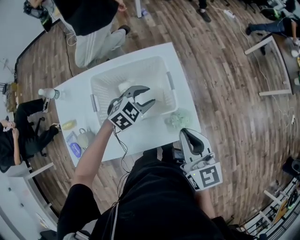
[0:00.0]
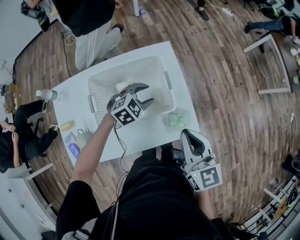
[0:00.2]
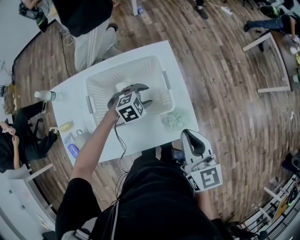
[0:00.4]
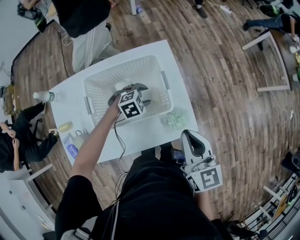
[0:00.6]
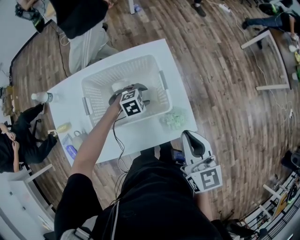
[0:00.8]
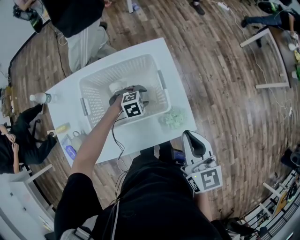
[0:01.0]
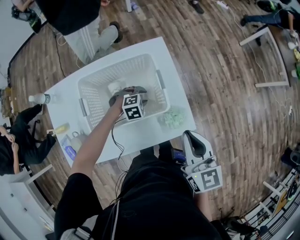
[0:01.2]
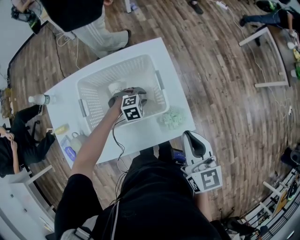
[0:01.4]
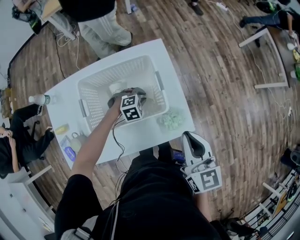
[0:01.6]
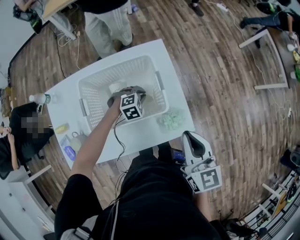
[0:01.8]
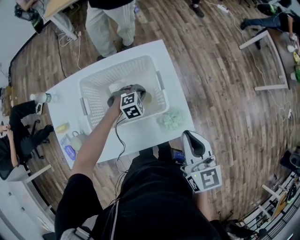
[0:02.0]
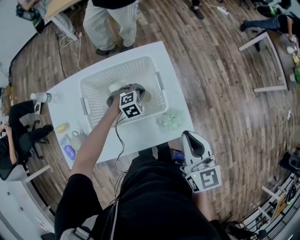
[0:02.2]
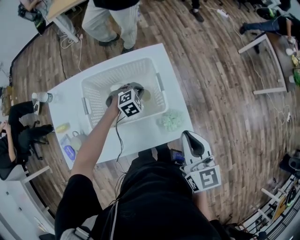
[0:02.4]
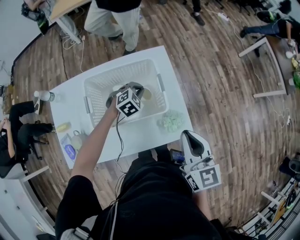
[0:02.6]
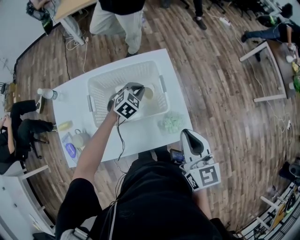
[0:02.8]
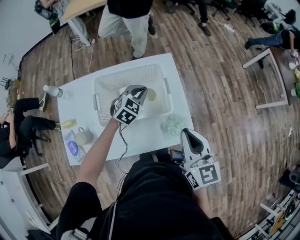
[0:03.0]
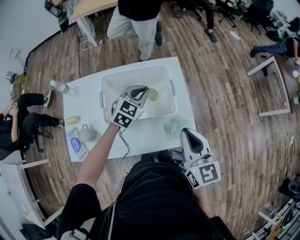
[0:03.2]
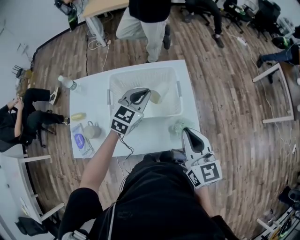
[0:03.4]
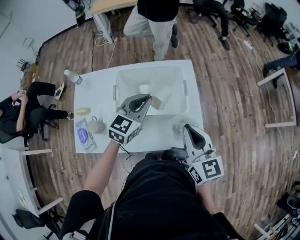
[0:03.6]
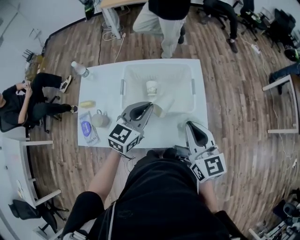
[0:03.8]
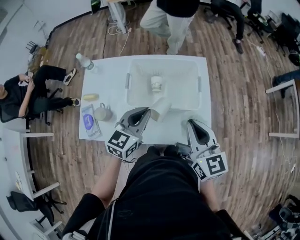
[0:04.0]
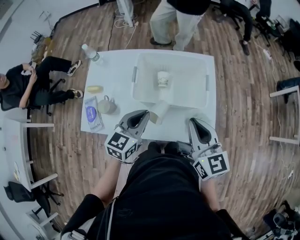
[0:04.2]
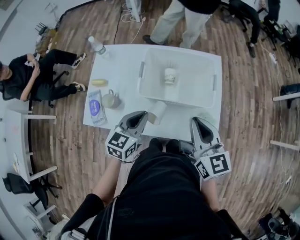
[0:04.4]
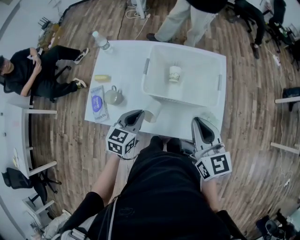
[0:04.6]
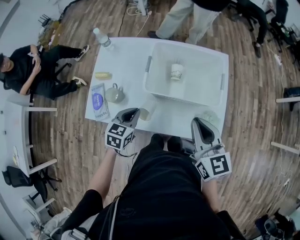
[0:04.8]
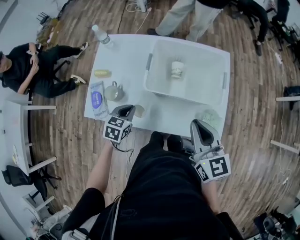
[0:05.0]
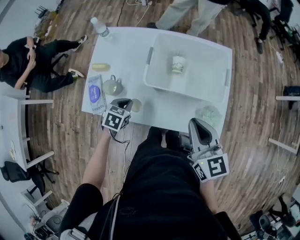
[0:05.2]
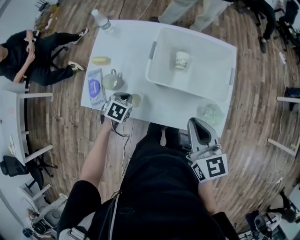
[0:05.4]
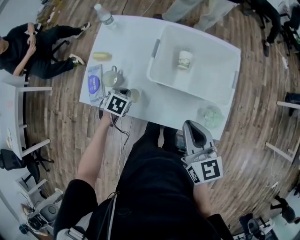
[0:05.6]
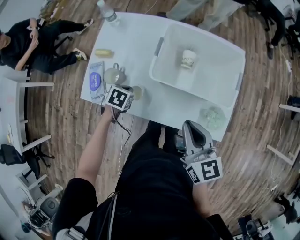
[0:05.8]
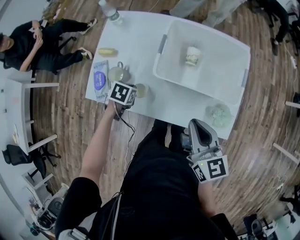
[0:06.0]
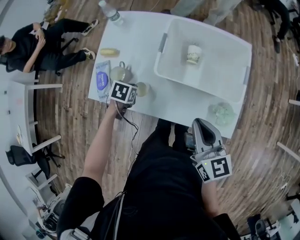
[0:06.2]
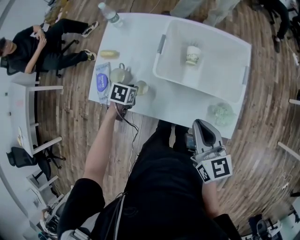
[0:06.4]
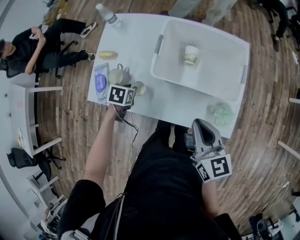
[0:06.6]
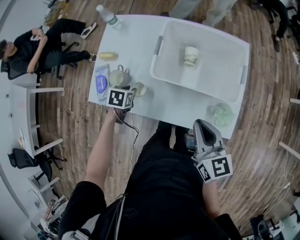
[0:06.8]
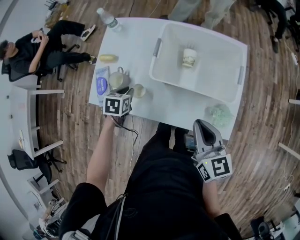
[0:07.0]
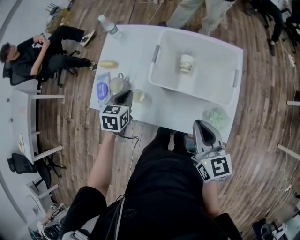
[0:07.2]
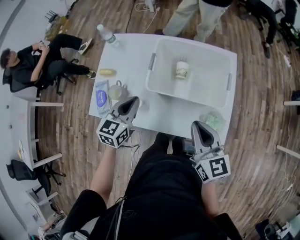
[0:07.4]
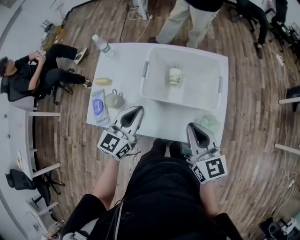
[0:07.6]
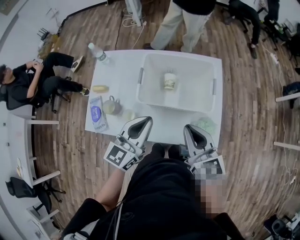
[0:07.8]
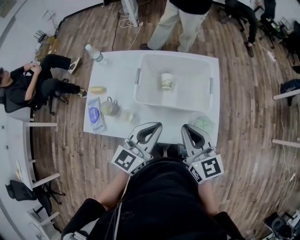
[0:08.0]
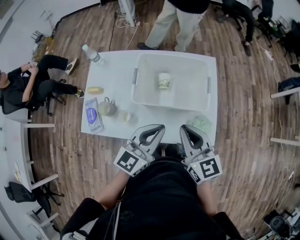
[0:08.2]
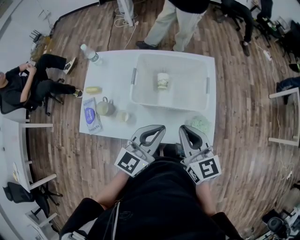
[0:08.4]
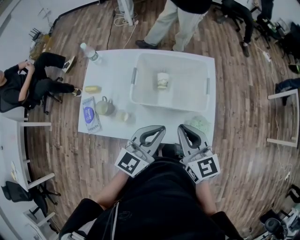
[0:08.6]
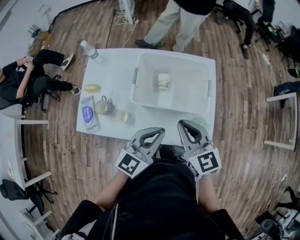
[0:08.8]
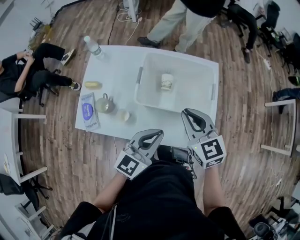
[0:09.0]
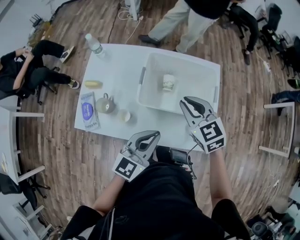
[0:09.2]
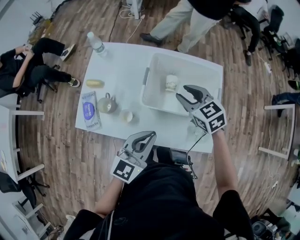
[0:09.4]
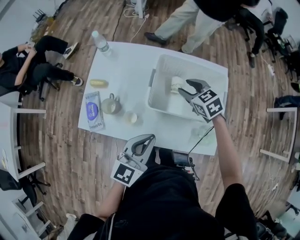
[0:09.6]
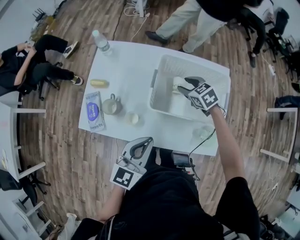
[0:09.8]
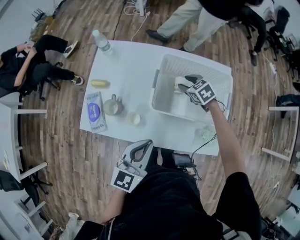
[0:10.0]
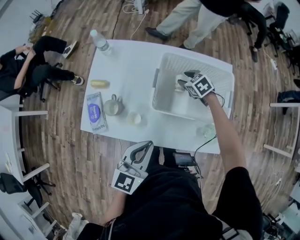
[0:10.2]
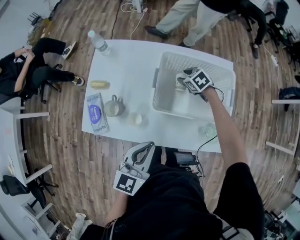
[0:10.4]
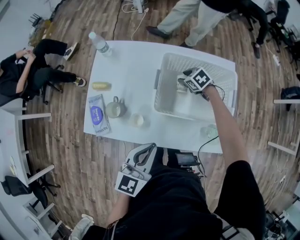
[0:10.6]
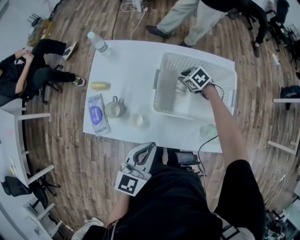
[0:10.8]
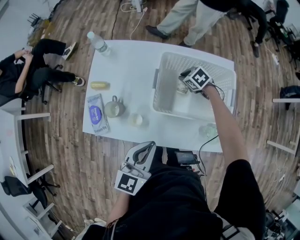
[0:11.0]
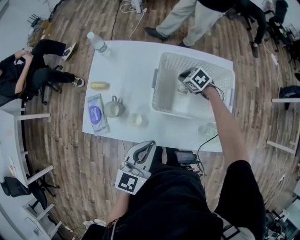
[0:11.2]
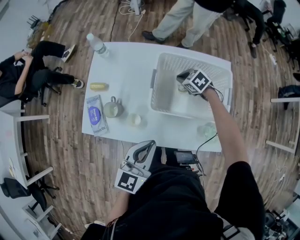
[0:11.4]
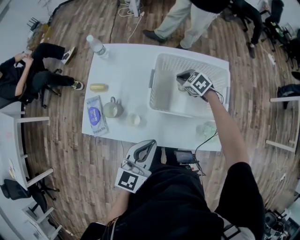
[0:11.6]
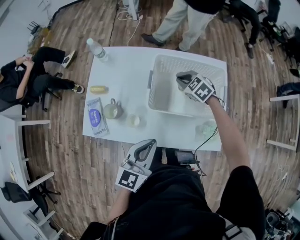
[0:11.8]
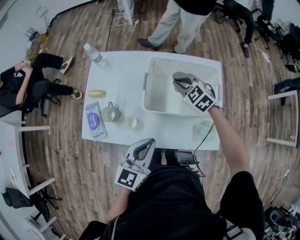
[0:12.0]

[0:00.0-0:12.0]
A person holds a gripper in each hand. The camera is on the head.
0:00.0 to 0:01.6: The left gripper heads downward, covering roughly 15 cm, changes its angle by about 30 degrees, and closes its fingers.
0:01.6 to 0:03.0: The left gripper goes about 15 cm upward, and rotates approximately 40 degrees.
0:03.0 to 0:04.4: The left gripper moves backward and to the left, some 25 cm, and rotates some 40 degrees. The right gripper moves to the left, about 10 cm, and swivels roughly 20 degrees.
0:04.4 to 0:06.0: The left gripper is displaced downward by roughly 20 cm, and tilts its fingers about 50 degrees downward, while the right gripper goes some 10 cm downward.
0:06.0 to 0:07.6: The left gripper travels upward by roughly 25 cm, points its fingers roughly 60 degrees further upward, and opens, then closes again, while the right gripper moves roughly 5 cm.
0:07.6 to 0:09.0: The left gripper goes about 10 cm to the right. The right gripper moves forward, roughly 5 cm.
0:09.0 to 0:10.4: The left gripper goes about 10 cm to the left. The right gripper shifts approximately 35 cm downward and forward, points its fingers some 30 degrees further downward, and opens its fingers.
0:10.4 to 0:12.0: The right gripper shifts about 15 cm upward and backward, rotates roughly 30 degrees, and closes.

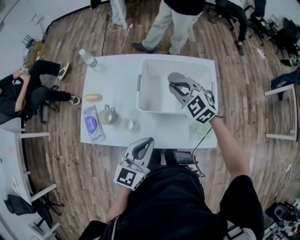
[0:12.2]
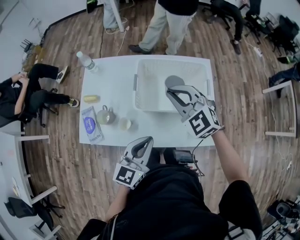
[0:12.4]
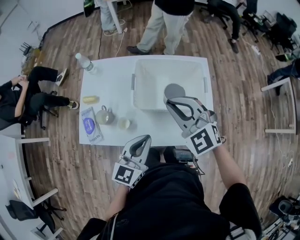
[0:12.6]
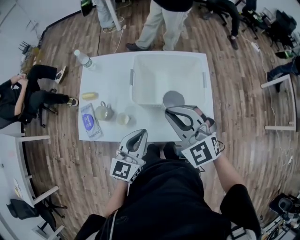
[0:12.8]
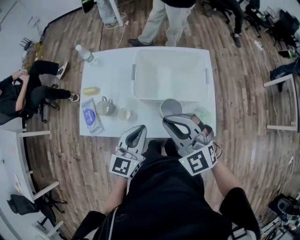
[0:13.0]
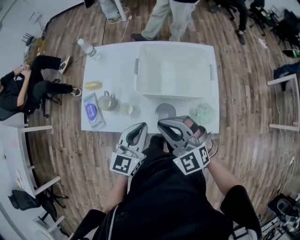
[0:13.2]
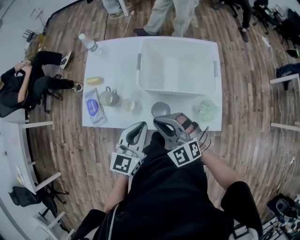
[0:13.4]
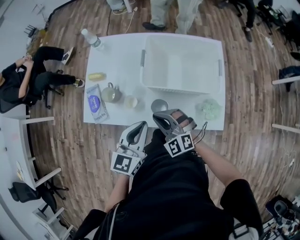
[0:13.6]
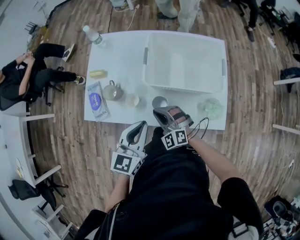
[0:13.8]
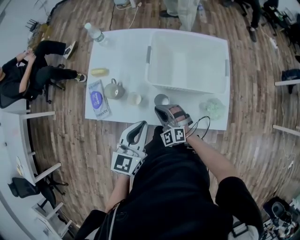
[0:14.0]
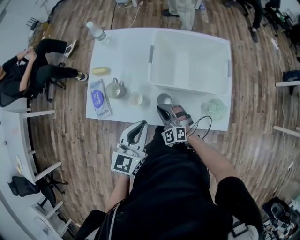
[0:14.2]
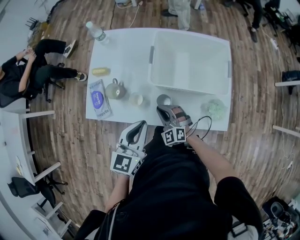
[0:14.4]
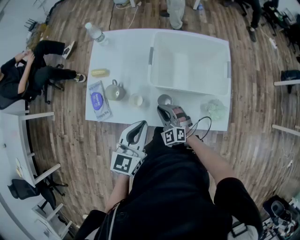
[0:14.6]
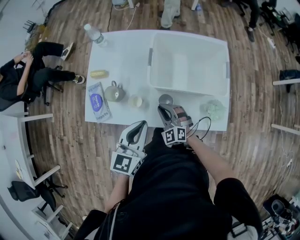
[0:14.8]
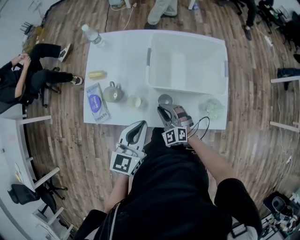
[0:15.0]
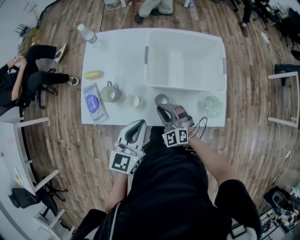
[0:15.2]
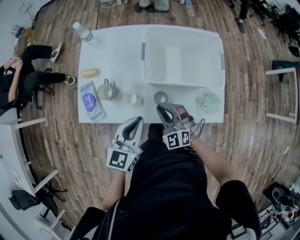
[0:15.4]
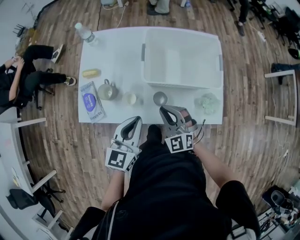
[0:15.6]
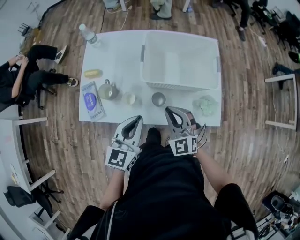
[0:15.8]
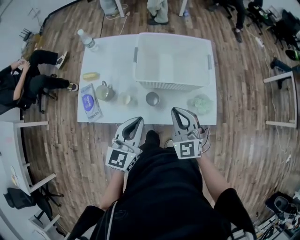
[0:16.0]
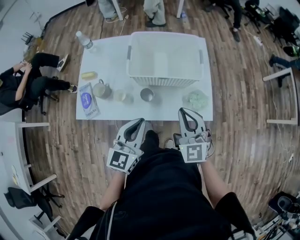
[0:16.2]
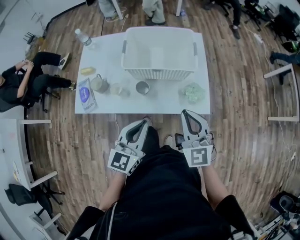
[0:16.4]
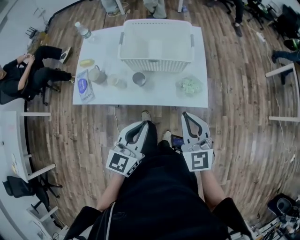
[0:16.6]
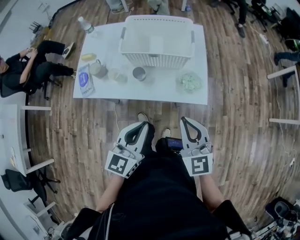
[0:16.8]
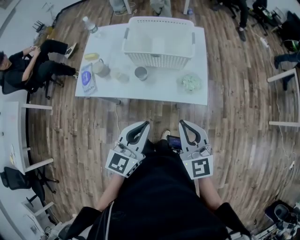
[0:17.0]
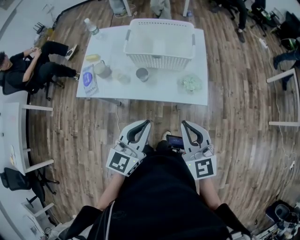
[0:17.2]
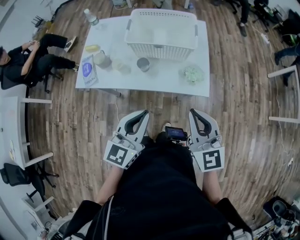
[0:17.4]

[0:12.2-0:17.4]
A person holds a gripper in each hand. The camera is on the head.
0:12.2 to 0:14.0: The left gripper is displaced to the left by some 5 cm; the right gripper goes roughly 25 cm backward, downward and to the left.
0:14.0 to 0:15.6: The right gripper is displaced upward by about 5 cm.
0:15.6 to 0:17.4: The left gripper moves backward, to the right and upward, roughly 25 cm. The right gripper is displaced to the right, backward and upward by some 35 cm, and turns by roughly 30 degrees.

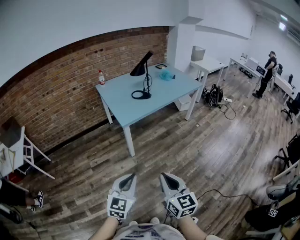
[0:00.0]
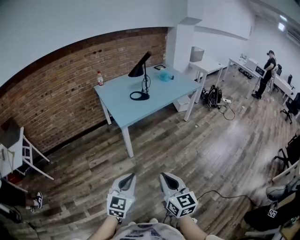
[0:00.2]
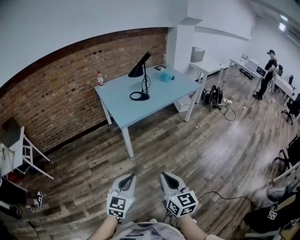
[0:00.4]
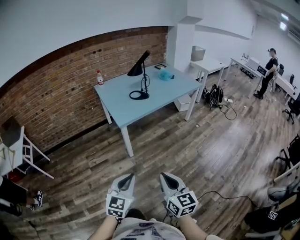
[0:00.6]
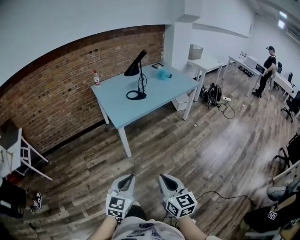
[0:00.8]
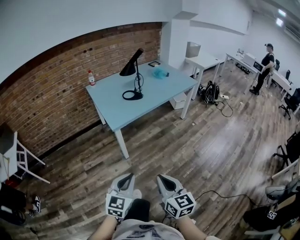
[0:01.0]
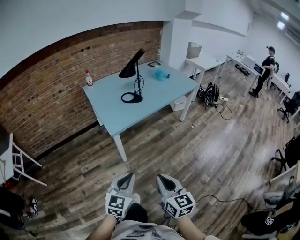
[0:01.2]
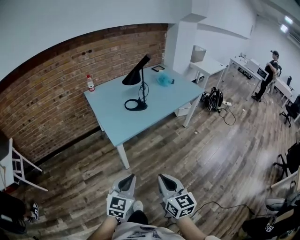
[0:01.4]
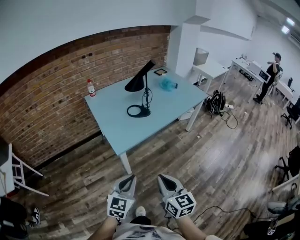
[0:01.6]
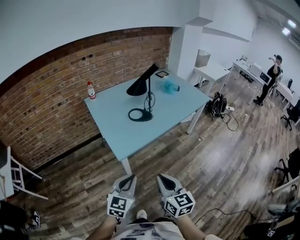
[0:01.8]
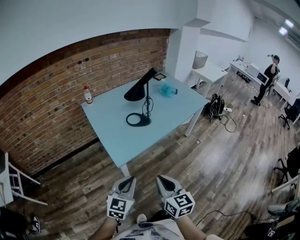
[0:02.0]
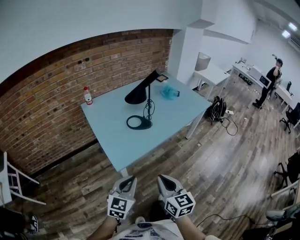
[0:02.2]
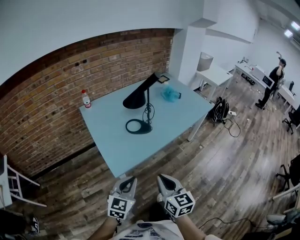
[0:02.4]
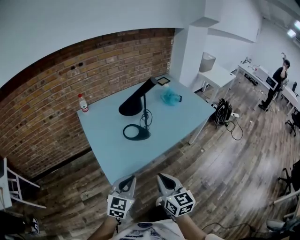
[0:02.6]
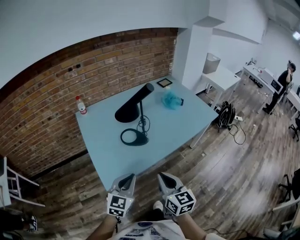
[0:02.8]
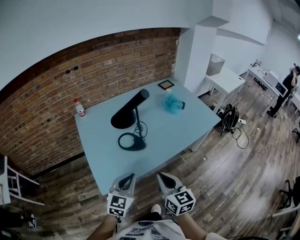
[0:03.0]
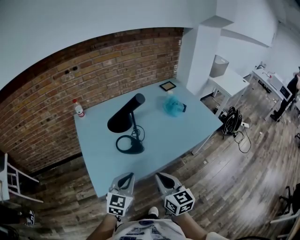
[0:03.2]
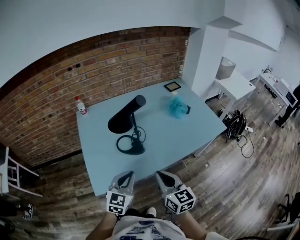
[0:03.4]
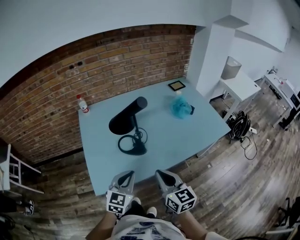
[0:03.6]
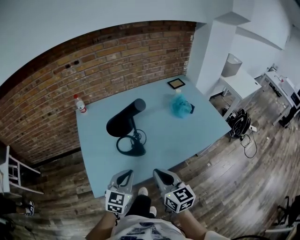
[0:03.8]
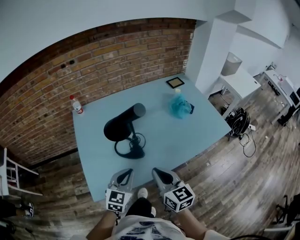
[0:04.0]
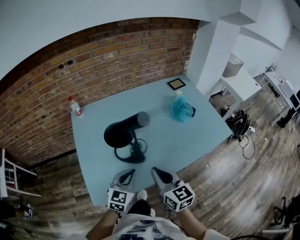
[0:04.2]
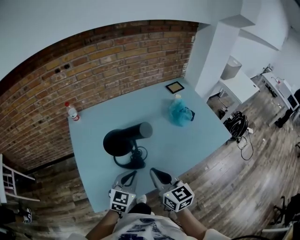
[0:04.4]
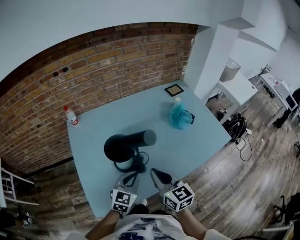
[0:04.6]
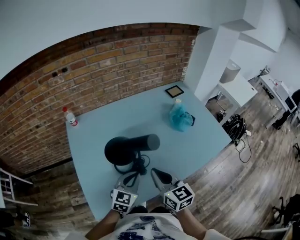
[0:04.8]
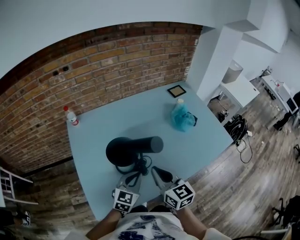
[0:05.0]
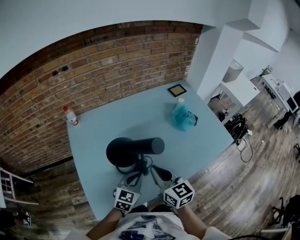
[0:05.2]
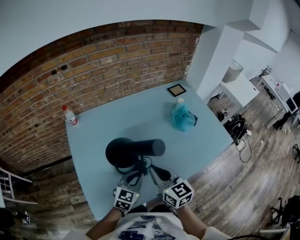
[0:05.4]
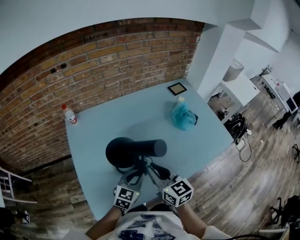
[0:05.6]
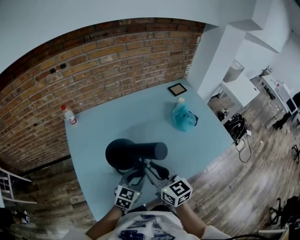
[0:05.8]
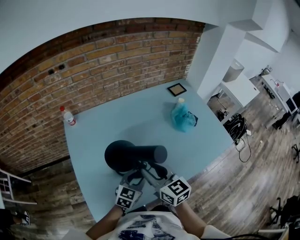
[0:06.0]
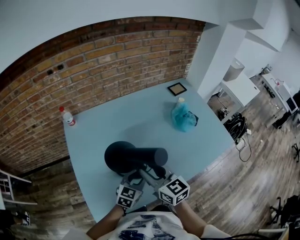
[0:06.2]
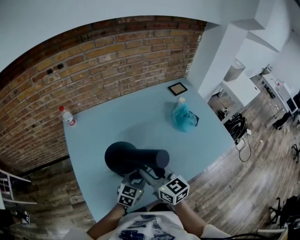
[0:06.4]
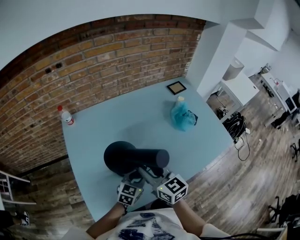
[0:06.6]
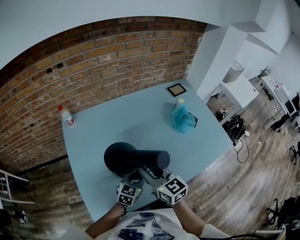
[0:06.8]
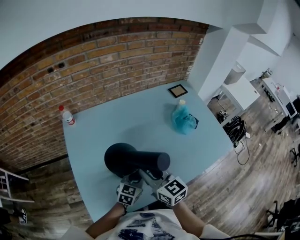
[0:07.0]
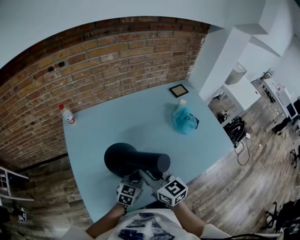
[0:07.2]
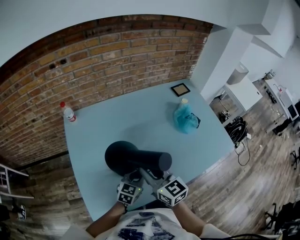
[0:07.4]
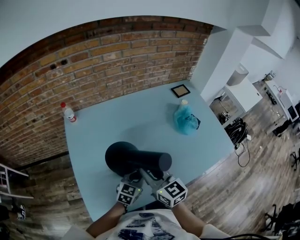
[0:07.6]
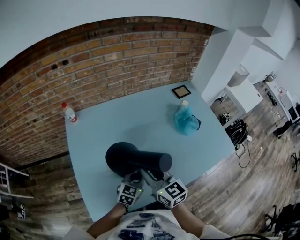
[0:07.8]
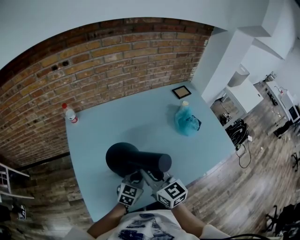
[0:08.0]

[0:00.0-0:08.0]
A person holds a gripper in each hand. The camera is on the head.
0:00.0 to 0:01.6: The two grippers go about 30 cm forward.
0:01.6 to 0:03.2: The two grippers go some 40 cm forward.
0:03.2 to 0:04.8: The two grippers go roughly 20 cm forward.
0:04.8 to 0:06.4: The right gripper goes about 10 cm forward and to the left, and opens up. The left gripper heads downward, covering roughly 5 cm, and opens.
0:06.4 to 0:08.0: The right gripper closes.
